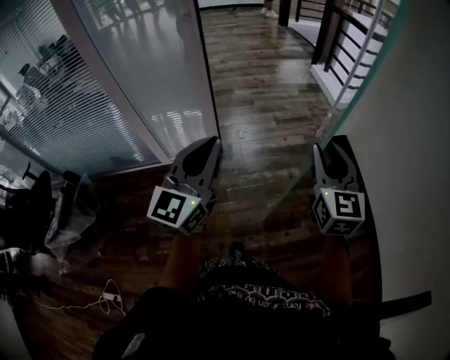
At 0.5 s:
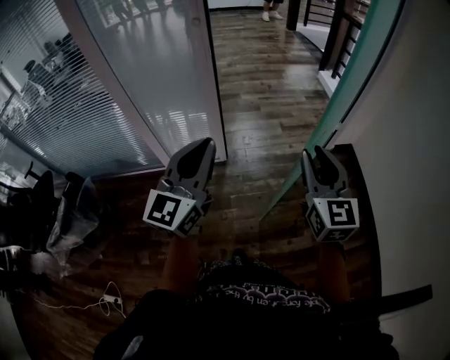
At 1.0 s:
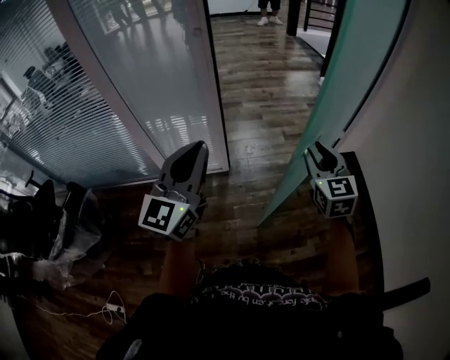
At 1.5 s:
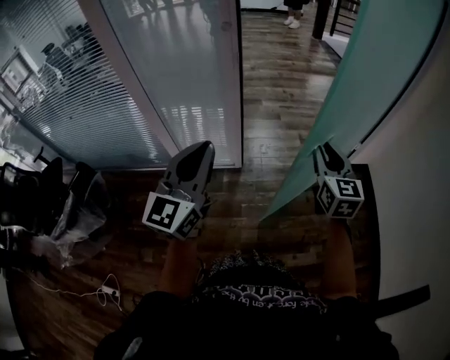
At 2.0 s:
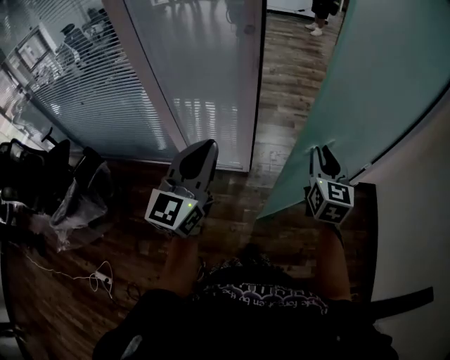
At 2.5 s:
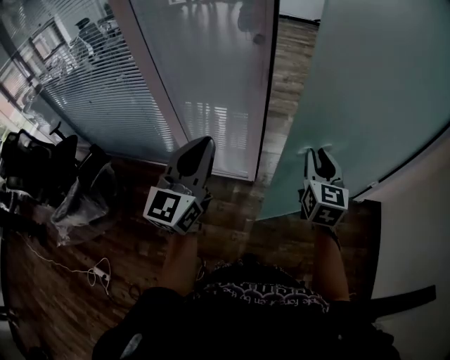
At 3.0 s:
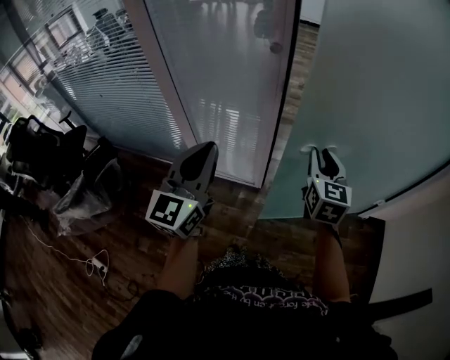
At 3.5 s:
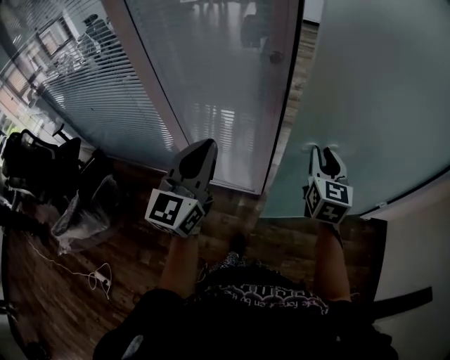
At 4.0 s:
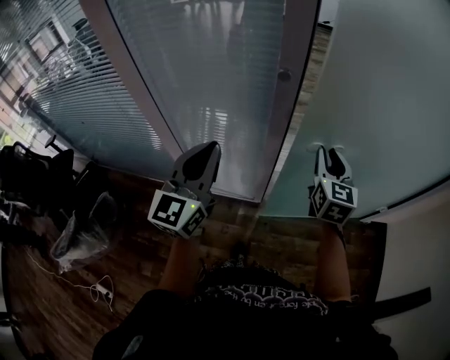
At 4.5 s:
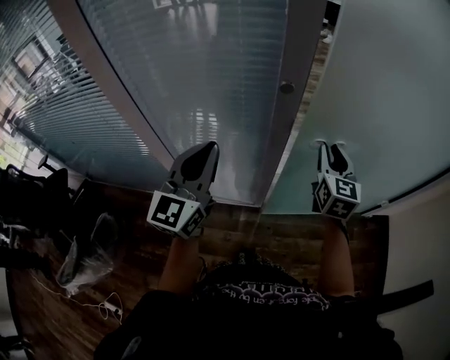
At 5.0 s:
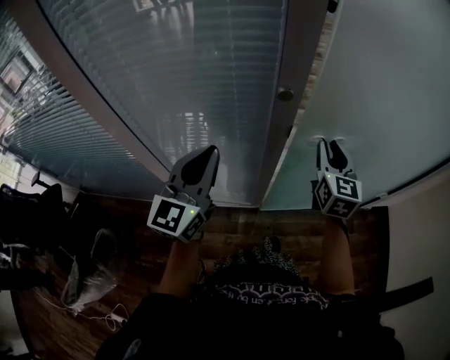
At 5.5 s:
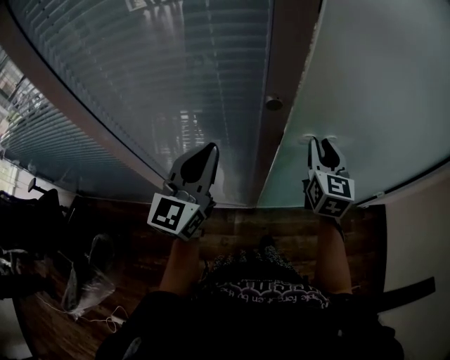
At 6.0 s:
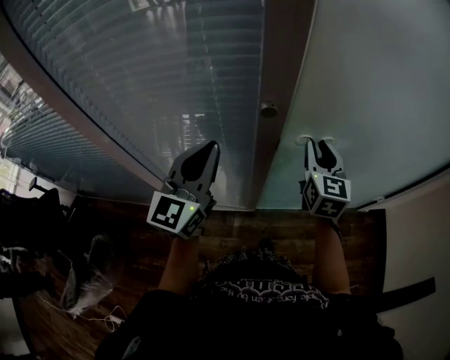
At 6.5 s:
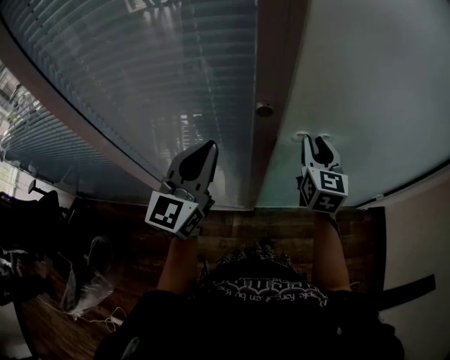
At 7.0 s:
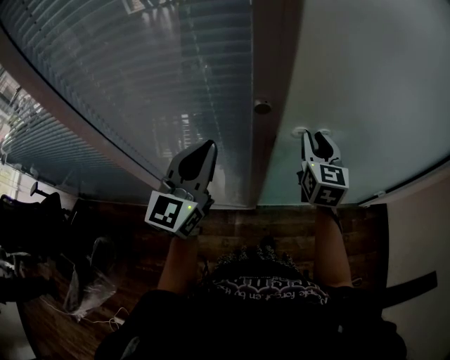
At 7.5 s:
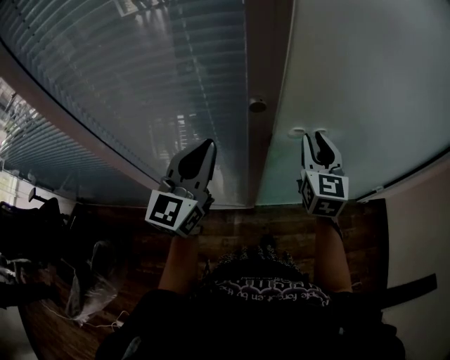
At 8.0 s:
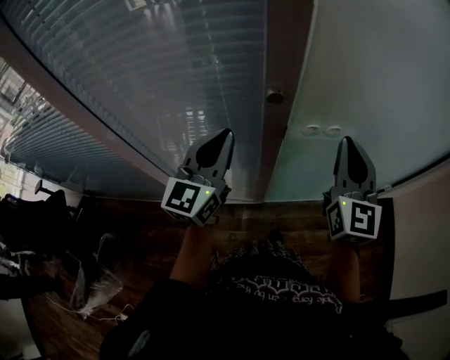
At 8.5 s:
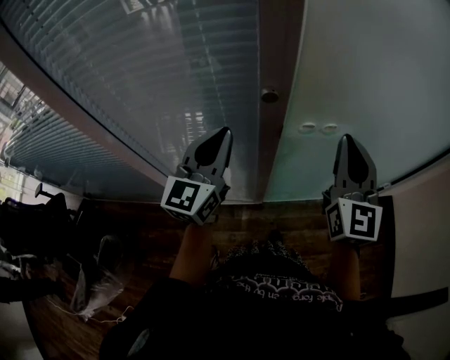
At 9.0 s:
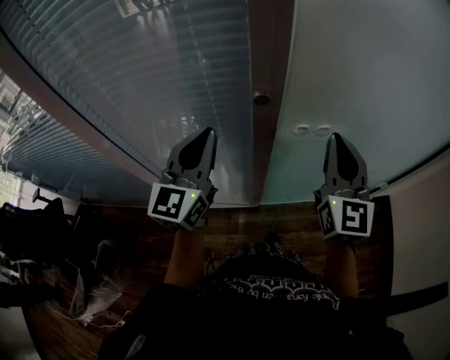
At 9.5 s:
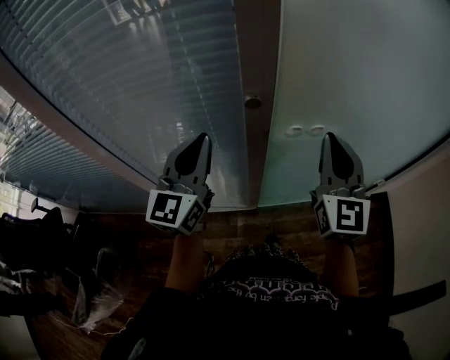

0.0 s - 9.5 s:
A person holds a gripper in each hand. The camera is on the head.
0.0 s - 2.0 s: The left gripper shifts some 20 cm to the left and forward. The right gripper heads forward and to the left, covering approximately 25 cm.
2.0 s - 4.0 s: The left gripper shifts about 25 cm forward and to the left, while the right gripper shifts roughly 25 cm forward.
4.0 s - 5.5 s: The two grippers go about 10 cm forward.
5.5 s - 7.5 s: The grippers stay close to where they were, moving slightly.
7.5 s - 9.5 s: The right gripper travels upward and backward by some 10 cm, and closes its fingers.

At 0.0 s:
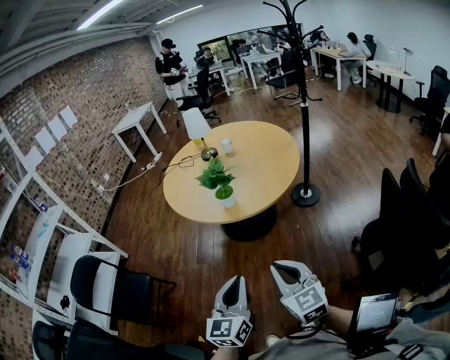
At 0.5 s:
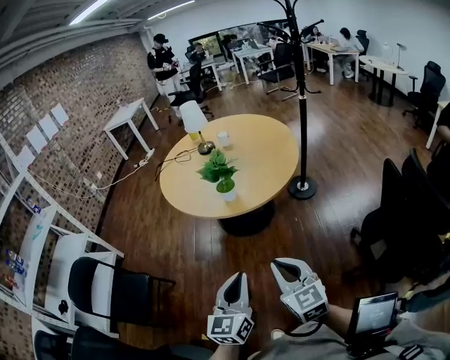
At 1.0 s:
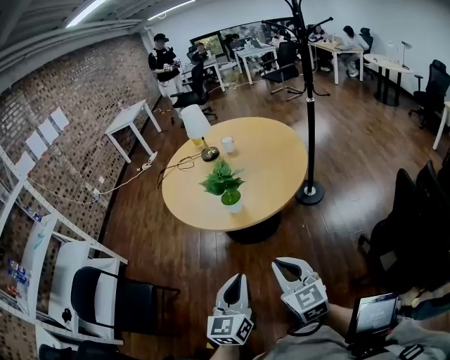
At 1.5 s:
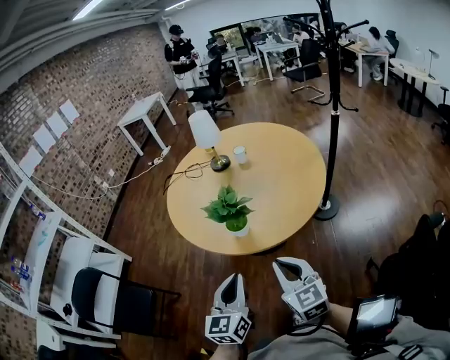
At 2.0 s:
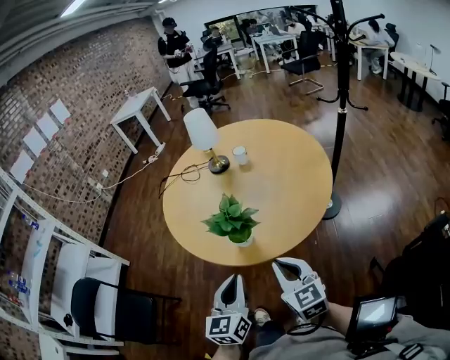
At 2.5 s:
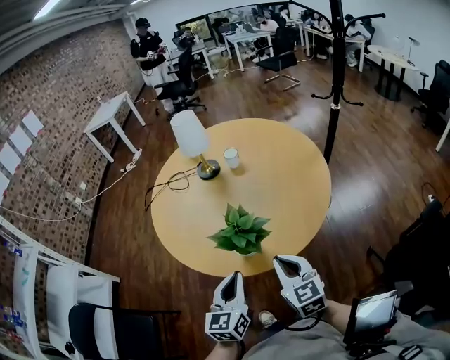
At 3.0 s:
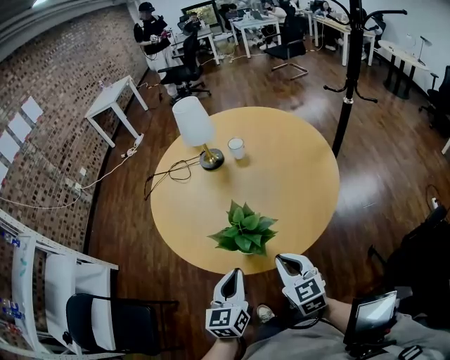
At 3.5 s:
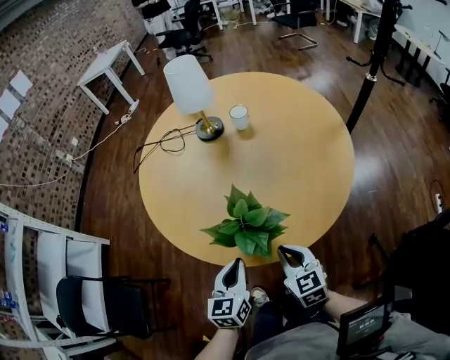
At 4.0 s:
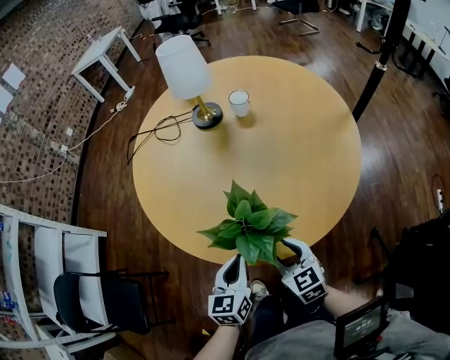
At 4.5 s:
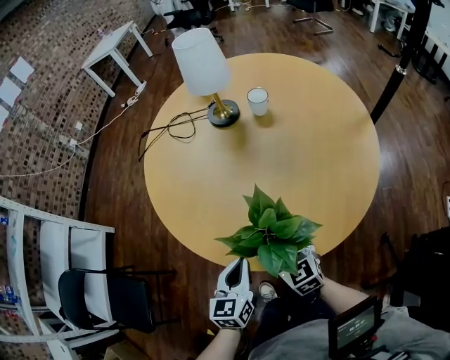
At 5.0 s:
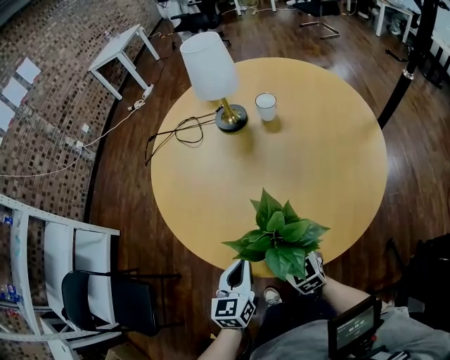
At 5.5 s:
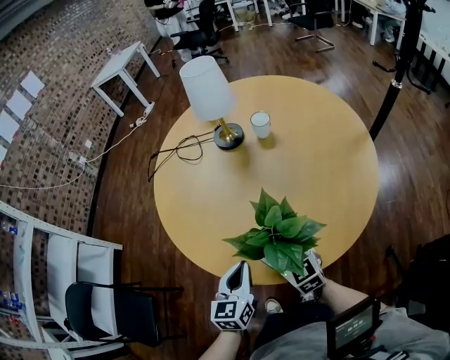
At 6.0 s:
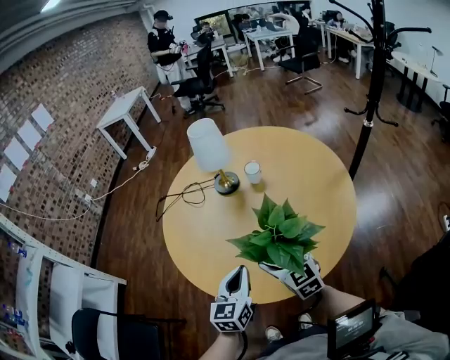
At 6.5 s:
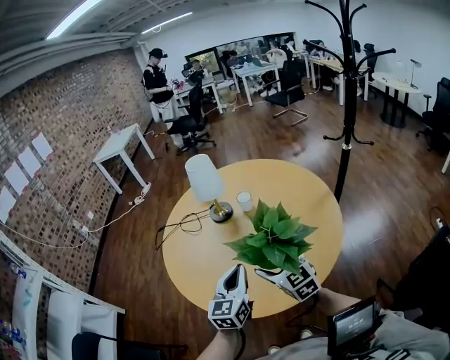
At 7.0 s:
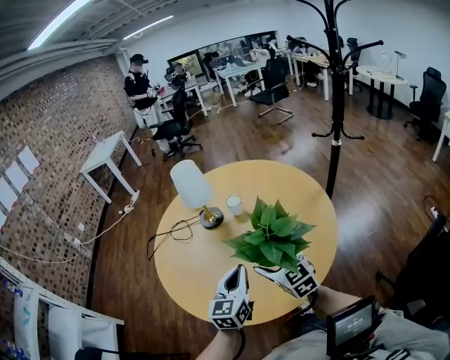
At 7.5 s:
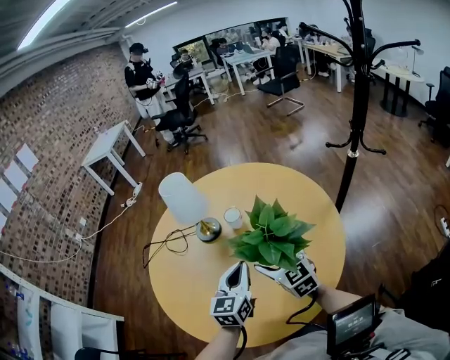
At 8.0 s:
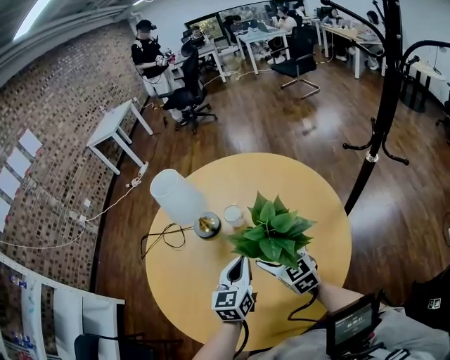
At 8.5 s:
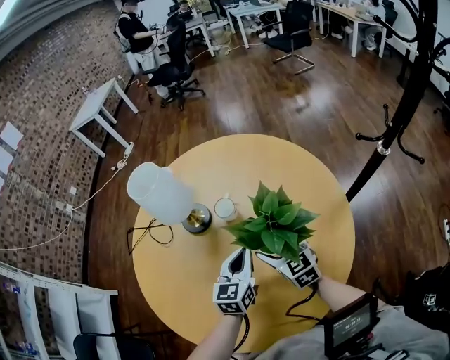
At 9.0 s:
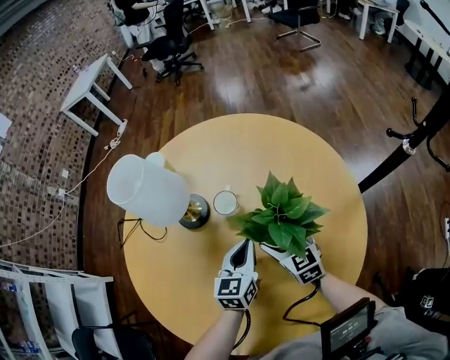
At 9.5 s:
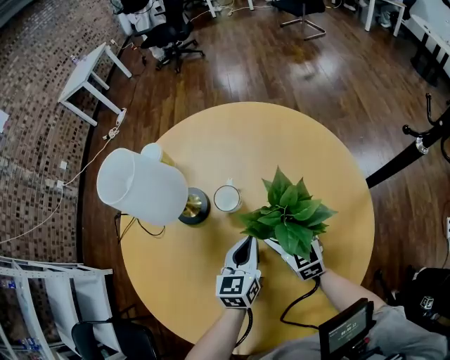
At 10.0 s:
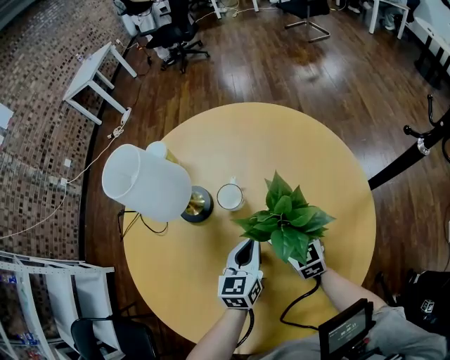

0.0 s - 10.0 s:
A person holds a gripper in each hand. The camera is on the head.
0.0 s - 2.0 s: Both grippers travel together forward, approximately 35 cm.
2.0 s - 4.0 s: Both grippers move downward and forward, some 25 cm.
4.0 s - 6.0 s: Both grippers move upward and forward, some 15 cm. The right gripper opens its fingers.
6.0 s - 8.0 s: Both grippers move forward and to the right, about 25 cm.
8.0 s - 10.0 s: Both grippers travel together downward and forward, approximately 15 cm.

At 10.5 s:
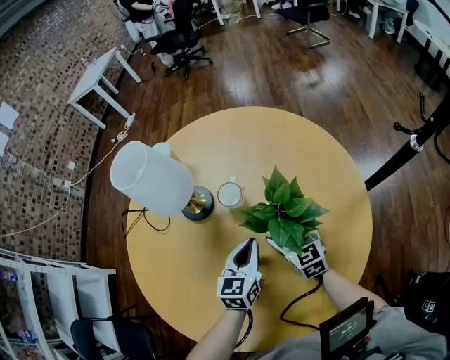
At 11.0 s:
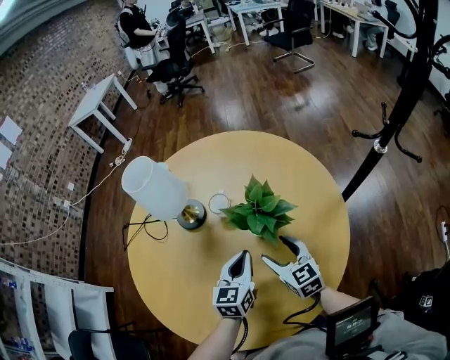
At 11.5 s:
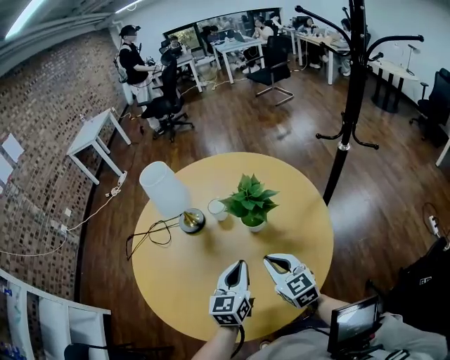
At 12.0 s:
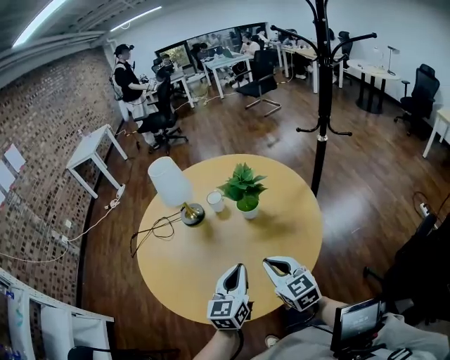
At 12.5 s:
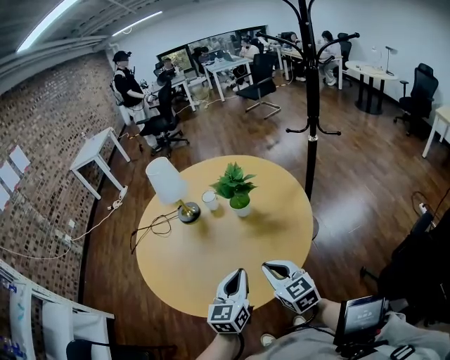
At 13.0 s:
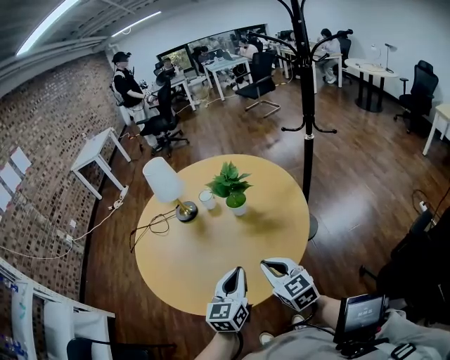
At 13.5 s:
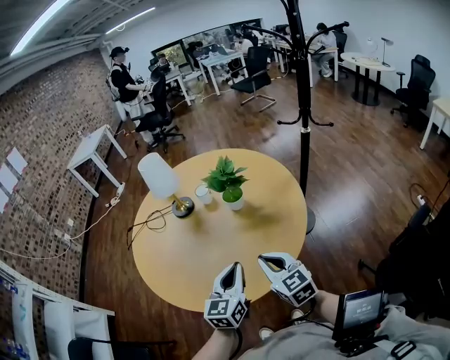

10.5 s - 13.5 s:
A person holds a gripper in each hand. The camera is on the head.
10.5 s - 12.0 s: Both grippers travel together backward and upward, about 35 cm. The right gripper closes its fingers.
12.0 s - 13.5 s: The grippers both shift backward by approximately 5 cm.

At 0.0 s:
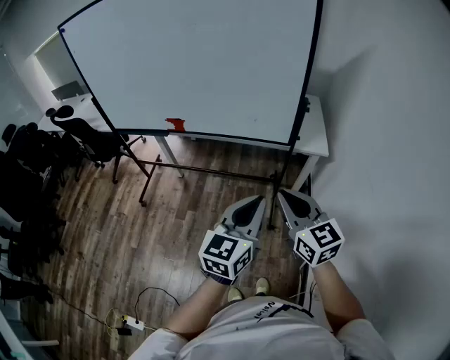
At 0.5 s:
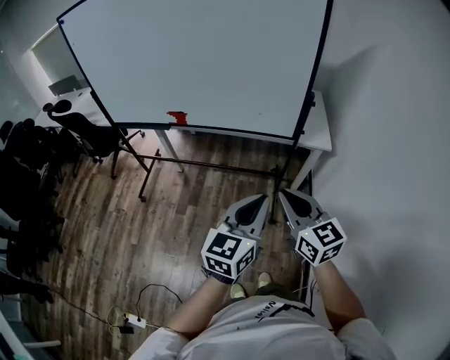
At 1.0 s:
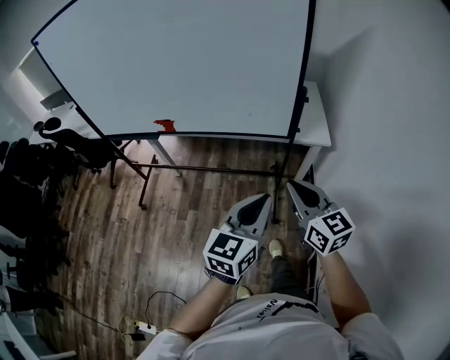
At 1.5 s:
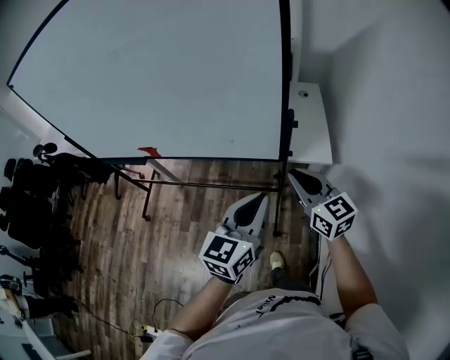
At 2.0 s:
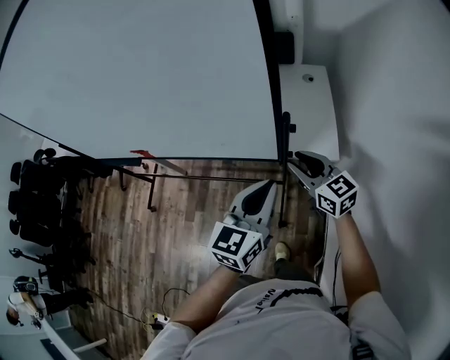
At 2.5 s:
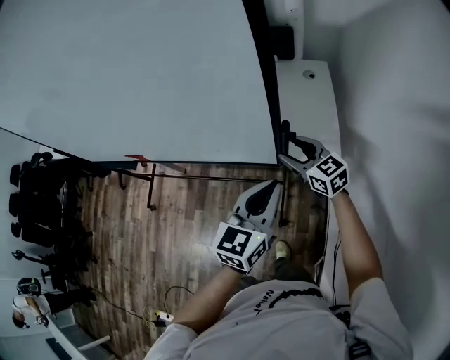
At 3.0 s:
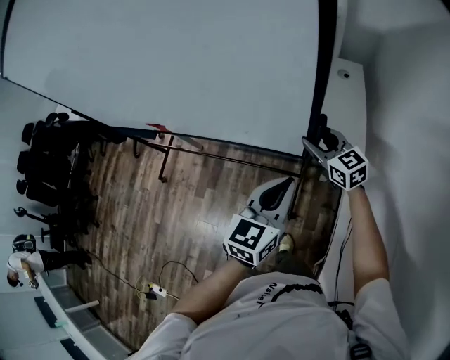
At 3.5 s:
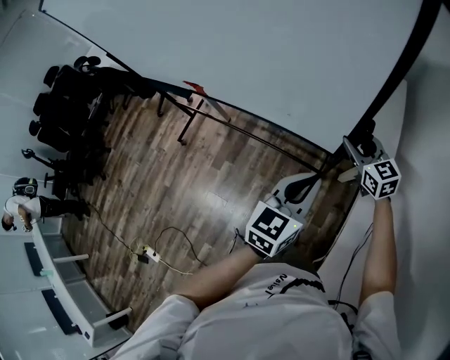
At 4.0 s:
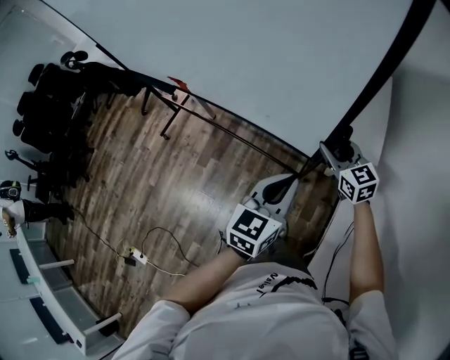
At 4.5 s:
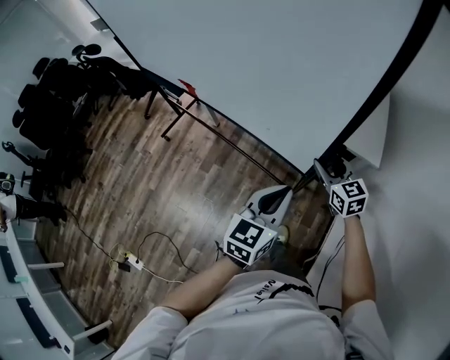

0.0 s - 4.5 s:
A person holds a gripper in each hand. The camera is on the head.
0.0 s - 2.0 s: Both grippers travel together forward and to the right, approximately 40 cm. The right gripper opens.
2.0 s - 4.5 s: The right gripper is displaced to the left, downward and backward by approximately 20 cm. Meanwhile the left gripper is displaced to the left, backward and downward by about 25 cm.
